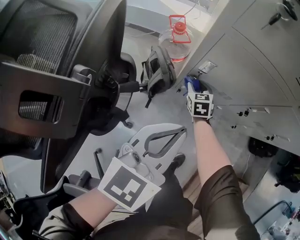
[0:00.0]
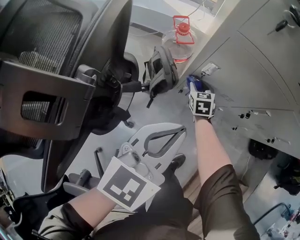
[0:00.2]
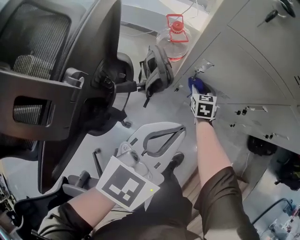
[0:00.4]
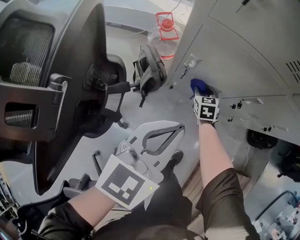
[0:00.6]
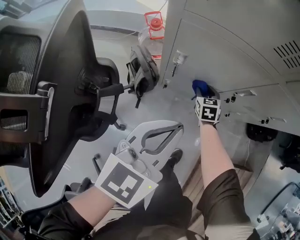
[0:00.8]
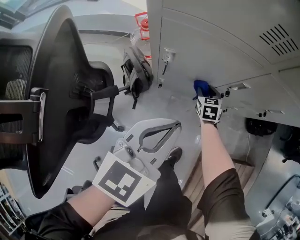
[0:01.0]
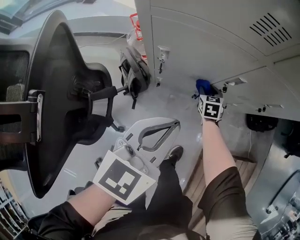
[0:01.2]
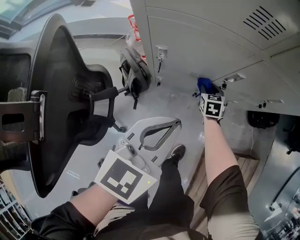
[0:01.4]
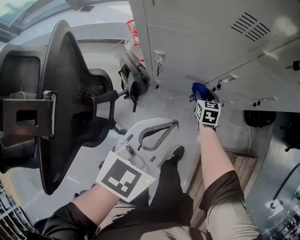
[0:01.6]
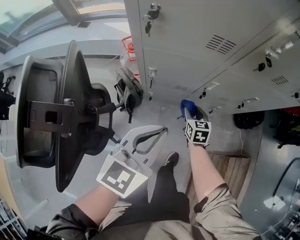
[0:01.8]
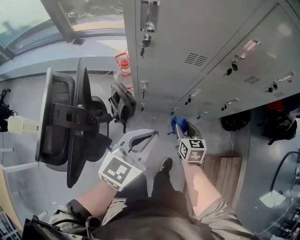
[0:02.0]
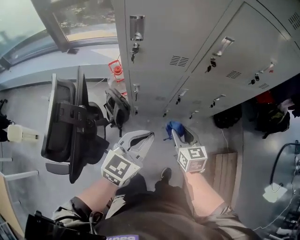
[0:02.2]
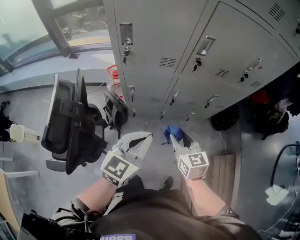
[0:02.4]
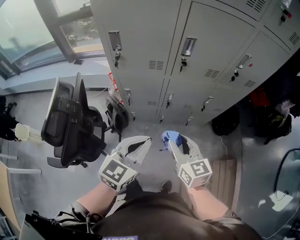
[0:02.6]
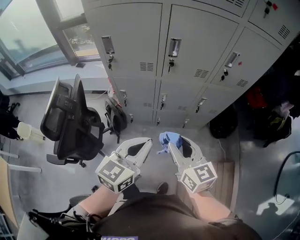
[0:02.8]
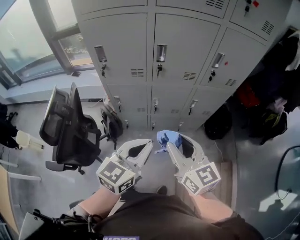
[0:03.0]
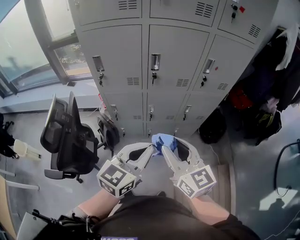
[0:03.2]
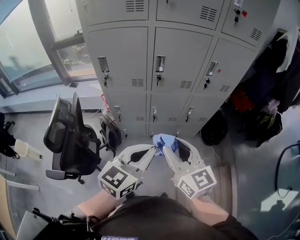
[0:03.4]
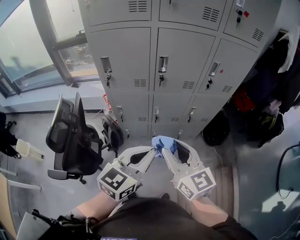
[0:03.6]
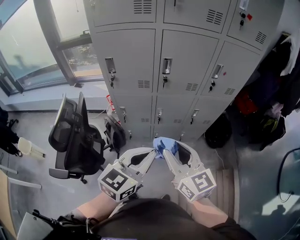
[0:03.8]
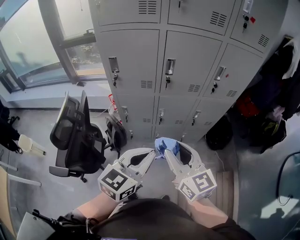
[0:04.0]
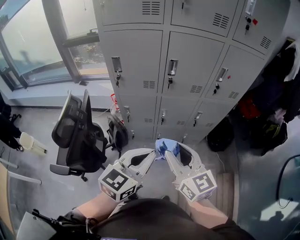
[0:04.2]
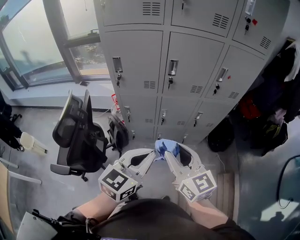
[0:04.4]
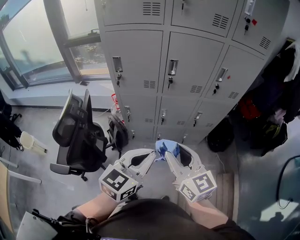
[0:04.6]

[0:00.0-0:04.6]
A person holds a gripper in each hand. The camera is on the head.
0:00.0 to 0:01.6: The right gripper heads to the right, covering some 20 cm, and turns by approximately 20 degrees, while the left gripper heads to the right, covering roughly 10 cm.
0:01.6 to 0:03.0: The left gripper is displaced upward, to the right and backward by about 35 cm; the right gripper moves upward and backward, about 60 cm, and angles its fingers upward, by about 40 degrees.
0:03.0 to 0:04.6: The left gripper travels backward by approximately 5 cm; the right gripper moves about 5 cm.

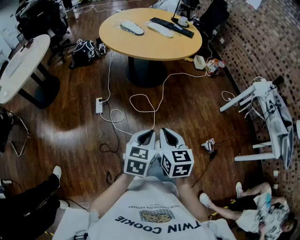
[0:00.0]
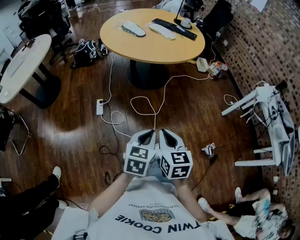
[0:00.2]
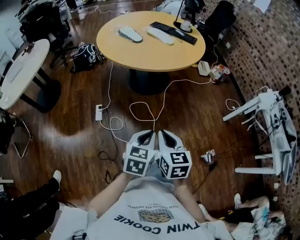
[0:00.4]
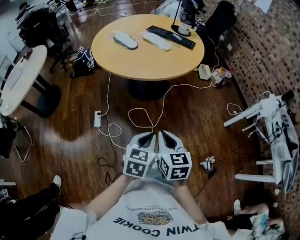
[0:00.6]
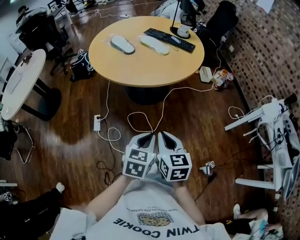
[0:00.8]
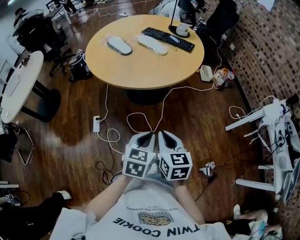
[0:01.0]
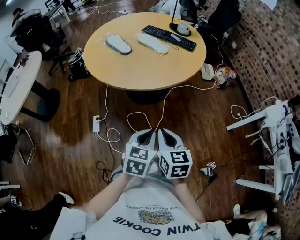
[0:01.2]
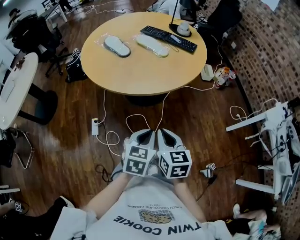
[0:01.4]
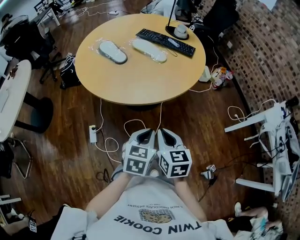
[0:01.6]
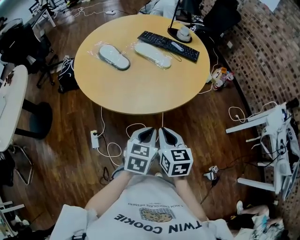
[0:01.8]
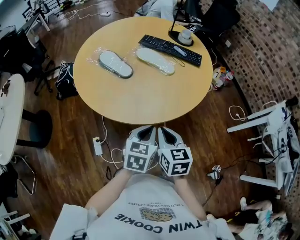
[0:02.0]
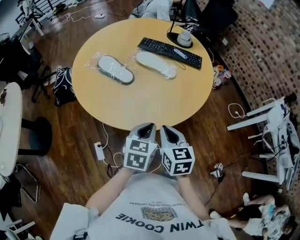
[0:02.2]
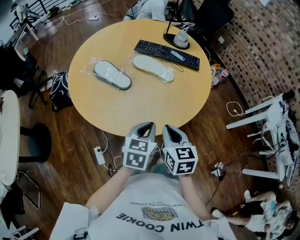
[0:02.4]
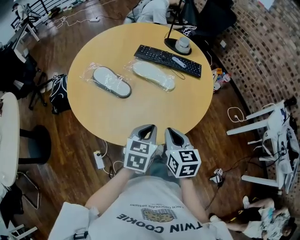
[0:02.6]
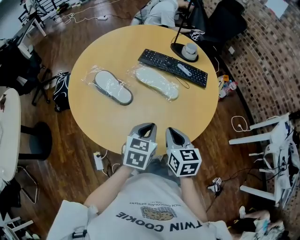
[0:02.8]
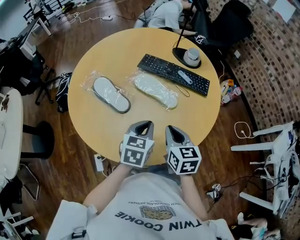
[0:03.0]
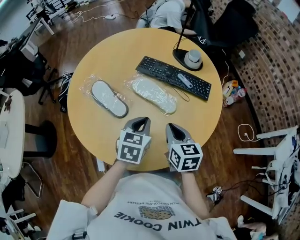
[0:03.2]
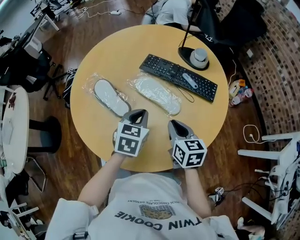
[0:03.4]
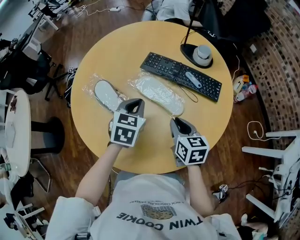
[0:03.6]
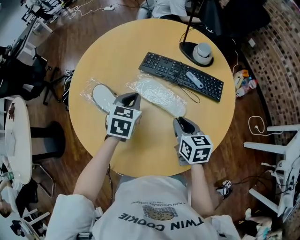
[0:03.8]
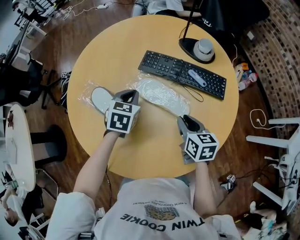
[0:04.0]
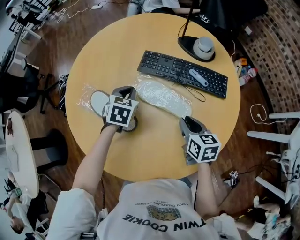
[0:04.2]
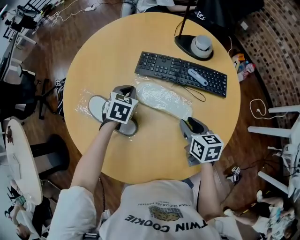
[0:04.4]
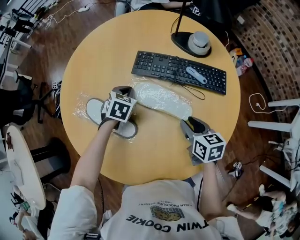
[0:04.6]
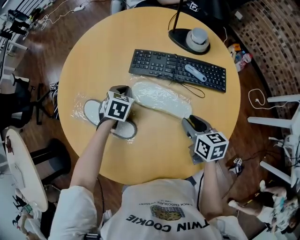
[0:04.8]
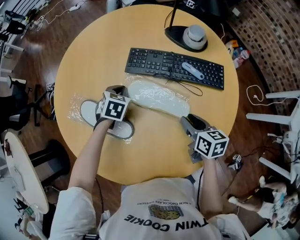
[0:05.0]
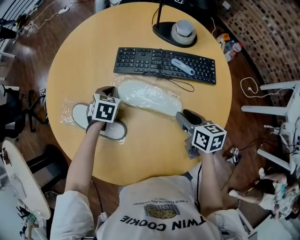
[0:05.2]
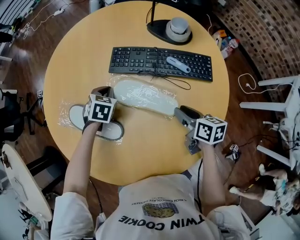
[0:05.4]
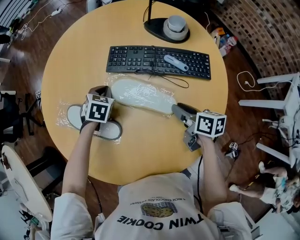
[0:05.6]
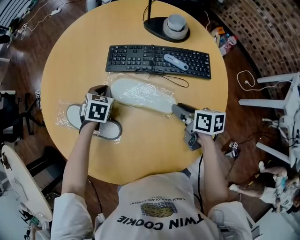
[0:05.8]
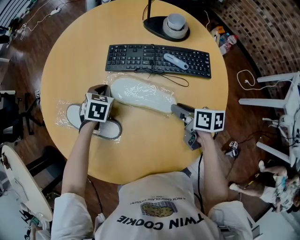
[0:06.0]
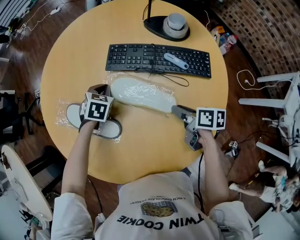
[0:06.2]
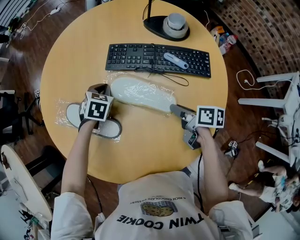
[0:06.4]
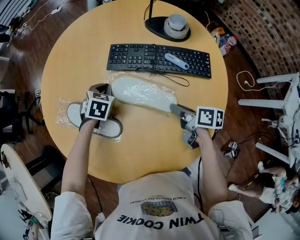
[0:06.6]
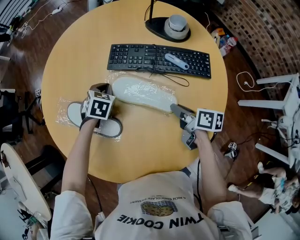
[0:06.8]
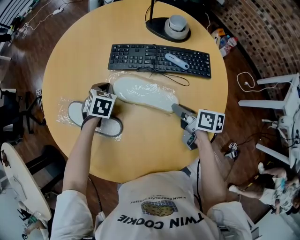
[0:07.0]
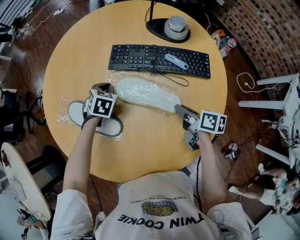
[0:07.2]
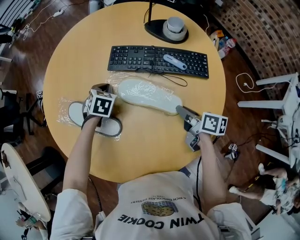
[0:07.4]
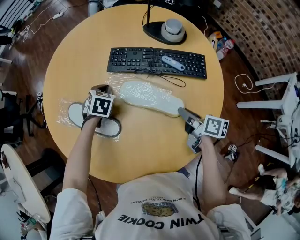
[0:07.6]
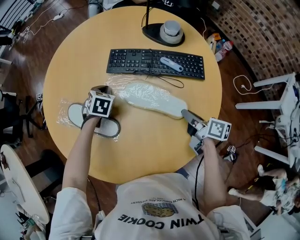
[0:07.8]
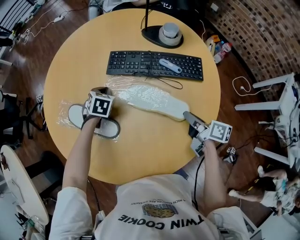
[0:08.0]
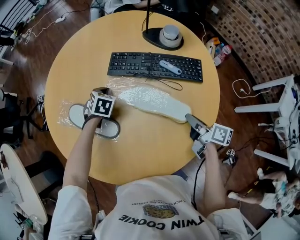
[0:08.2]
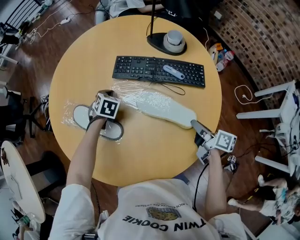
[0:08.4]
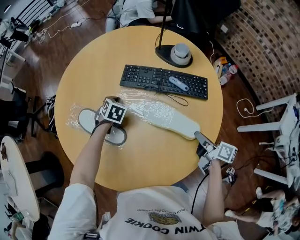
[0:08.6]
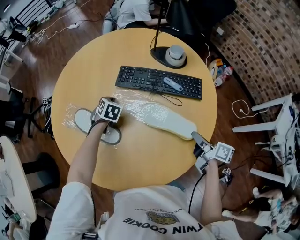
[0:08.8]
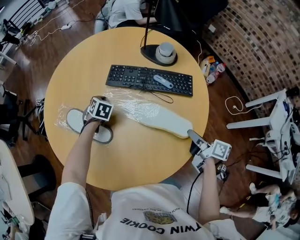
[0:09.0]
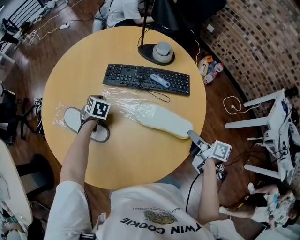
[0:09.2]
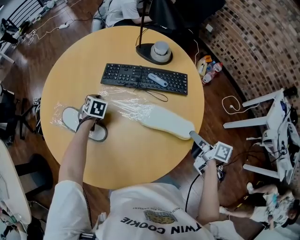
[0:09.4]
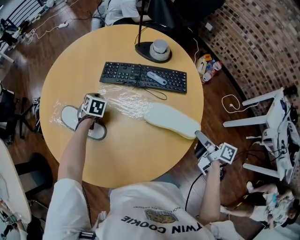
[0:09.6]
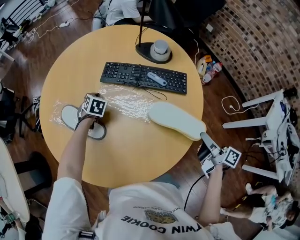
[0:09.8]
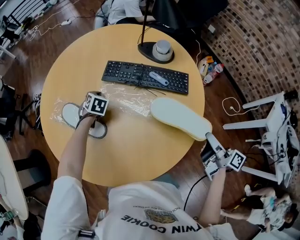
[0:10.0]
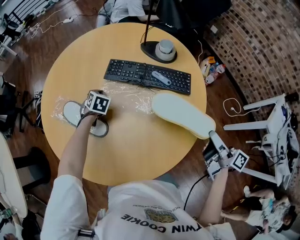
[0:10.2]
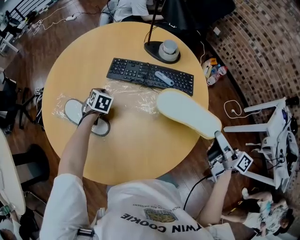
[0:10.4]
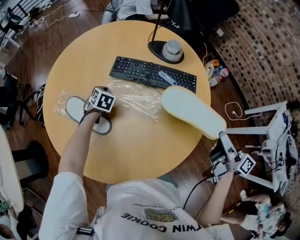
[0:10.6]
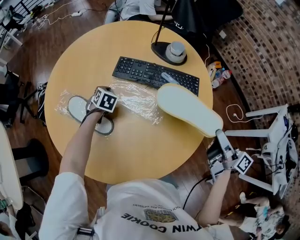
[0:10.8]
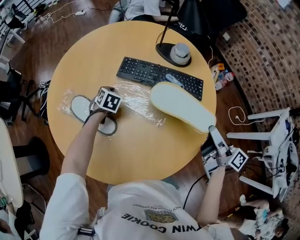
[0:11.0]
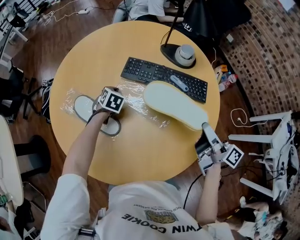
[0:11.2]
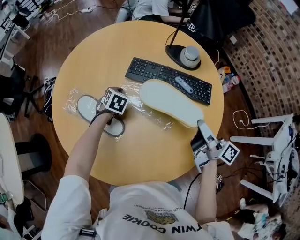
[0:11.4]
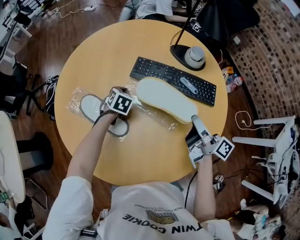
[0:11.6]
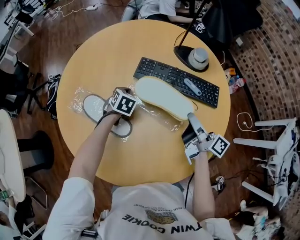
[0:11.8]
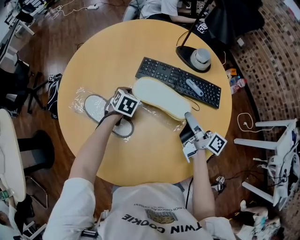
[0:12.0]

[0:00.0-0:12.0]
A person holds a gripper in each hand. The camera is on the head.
0:00.0 to 0:01.6: Both grippers travel together forward, roughly 40 cm.
0:01.6 to 0:03.0: Both grippers move forward, some 35 cm.
0:03.0 to 0:04.4: The right gripper goes roughly 15 cm forward and downward, and opens its fingers. The left gripper is displaced forward by some 30 cm, and changes its angle by roughly 20 degrees.
0:04.4 to 0:06.0: The right gripper moves approximately 5 cm, and changes its angle by about 30 degrees. The left gripper is displaced downward by roughly 5 cm.
0:06.0 to 0:07.6: The grippers make only small movements.
0:07.6 to 0:09.0: The right gripper shifts some 10 cm to the right and backward.
0:09.0 to 0:10.4: The right gripper shifts roughly 15 cm upward and to the right, and turns by roughly 20 degrees.
0:10.4 to 0:12.0: The right gripper heads to the left, forward and downward, covering roughly 25 cm.

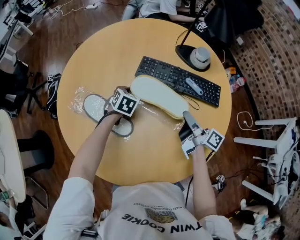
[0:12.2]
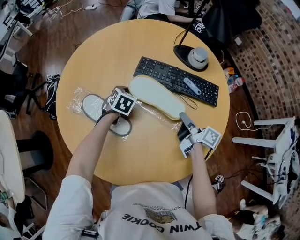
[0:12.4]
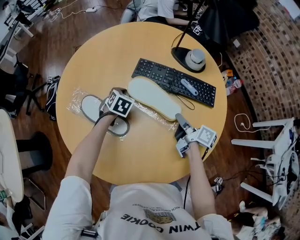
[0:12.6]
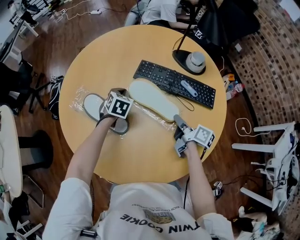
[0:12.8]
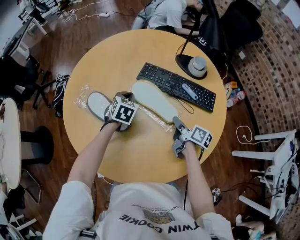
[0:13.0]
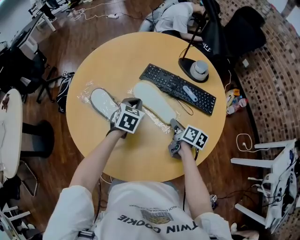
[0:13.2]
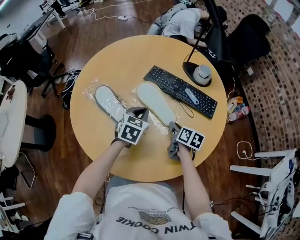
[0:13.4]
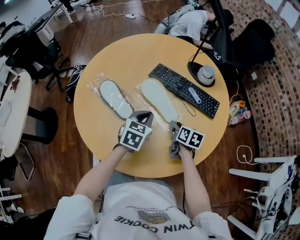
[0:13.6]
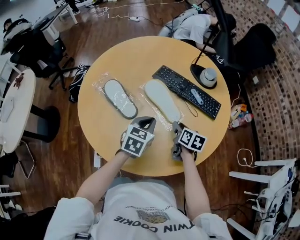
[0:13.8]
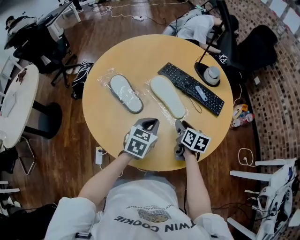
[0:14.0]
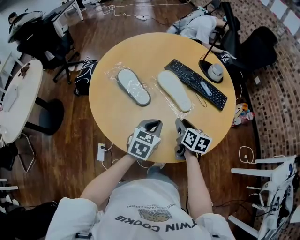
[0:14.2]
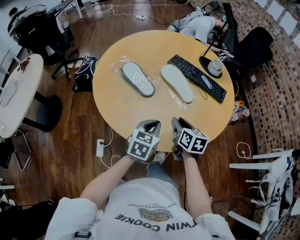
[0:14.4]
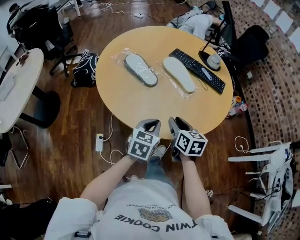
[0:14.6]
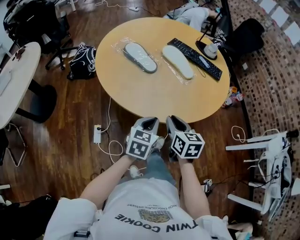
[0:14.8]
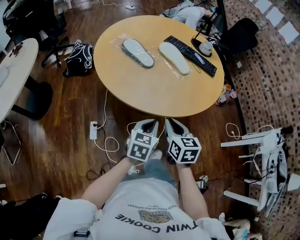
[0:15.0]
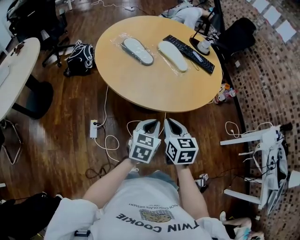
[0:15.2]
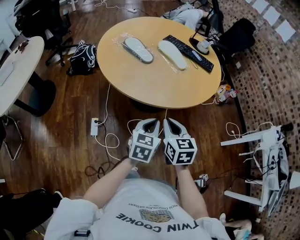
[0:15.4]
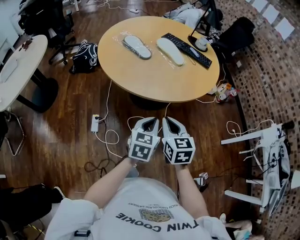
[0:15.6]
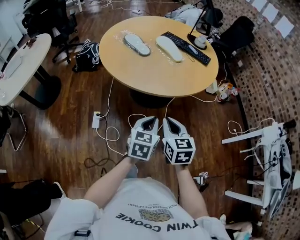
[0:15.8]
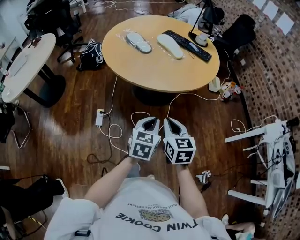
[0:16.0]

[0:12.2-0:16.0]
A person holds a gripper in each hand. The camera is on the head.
0:12.2 to 0:13.4: The right gripper shifts approximately 5 cm downward, and points its fingers about 30 degrees further downward; the left gripper is displaced backward, upward and to the right by approximately 20 cm.
0:13.4 to 0:14.8: The right gripper moves backward and to the left, roughly 35 cm, and changes its angle by about 30 degrees. The left gripper travels backward by about 35 cm.
0:14.8 to 0:16.0: The right gripper moves backward, some 25 cm. The left gripper heads backward and to the right, covering roughly 25 cm.

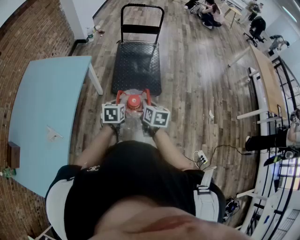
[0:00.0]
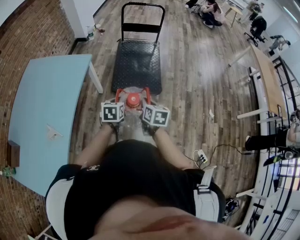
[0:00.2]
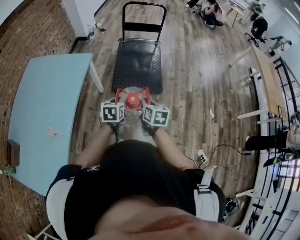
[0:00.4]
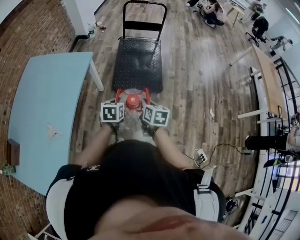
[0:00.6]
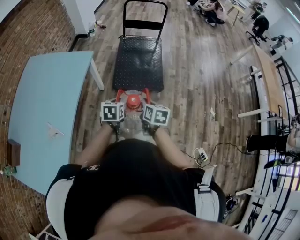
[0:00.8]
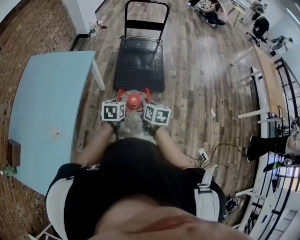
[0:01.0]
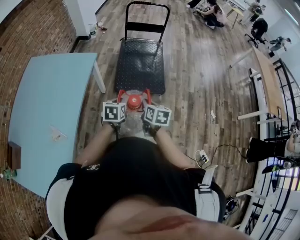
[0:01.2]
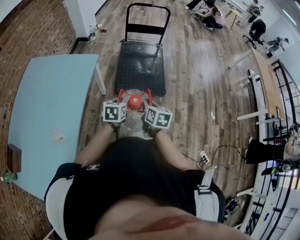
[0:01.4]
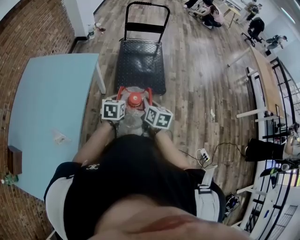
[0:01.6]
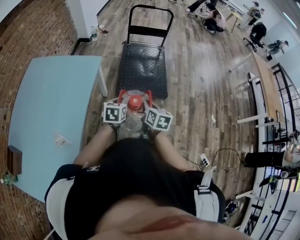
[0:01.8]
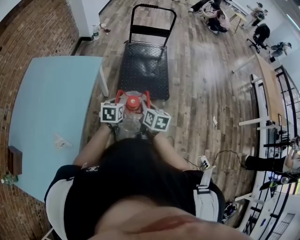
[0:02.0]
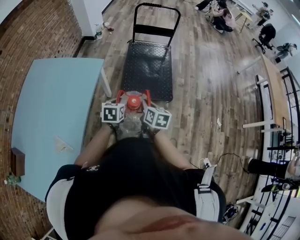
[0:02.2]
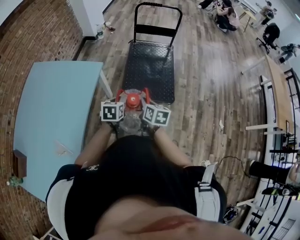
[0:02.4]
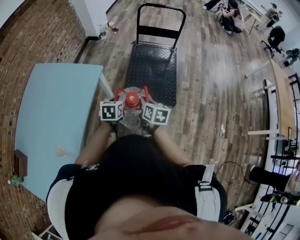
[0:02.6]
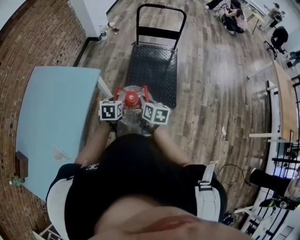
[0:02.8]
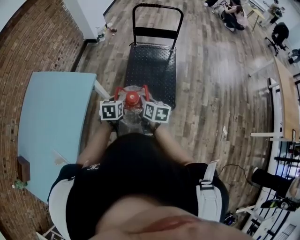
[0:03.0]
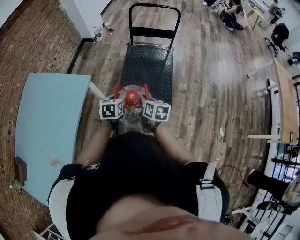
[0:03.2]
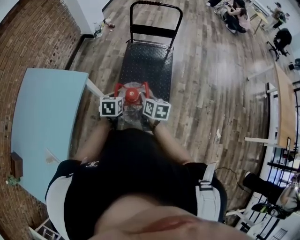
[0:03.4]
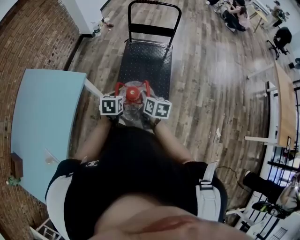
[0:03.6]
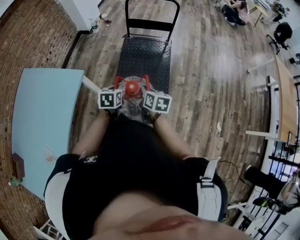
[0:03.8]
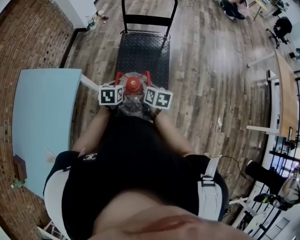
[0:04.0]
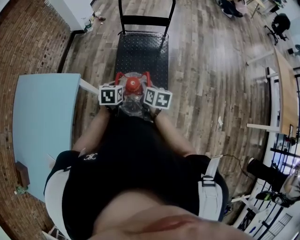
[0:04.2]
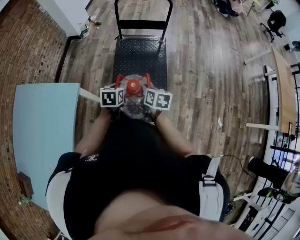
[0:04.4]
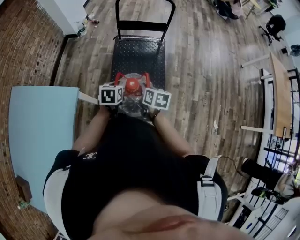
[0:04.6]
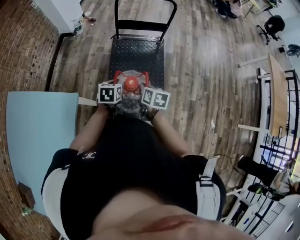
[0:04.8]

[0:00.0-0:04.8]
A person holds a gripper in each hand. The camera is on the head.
0:00.0 to 0:01.6: Both grippers travel together to the left, approximately 5 cm.
0:01.6 to 0:03.2: The two grippers go approximately 20 cm forward.
0:03.2 to 0:04.8: The two grippers go roughly 20 cm forward.
